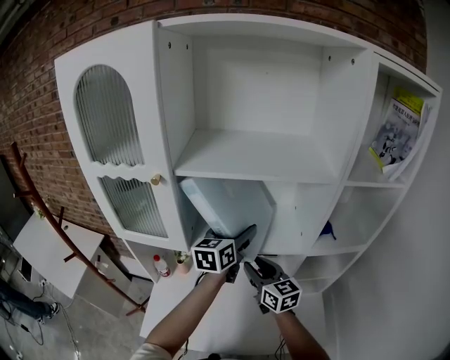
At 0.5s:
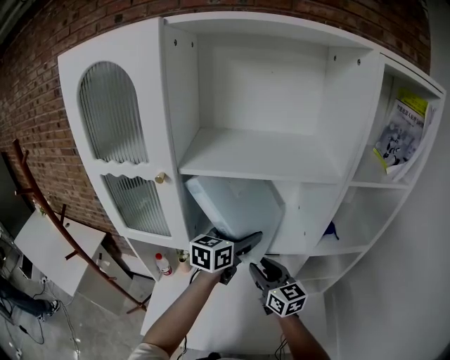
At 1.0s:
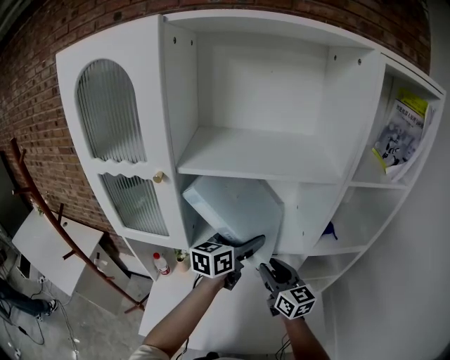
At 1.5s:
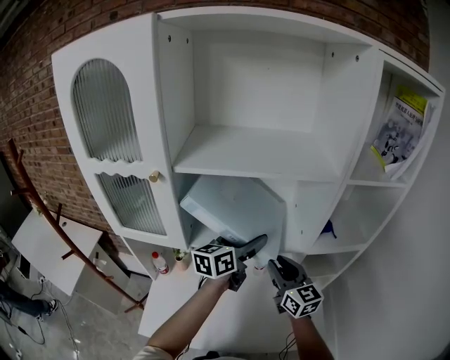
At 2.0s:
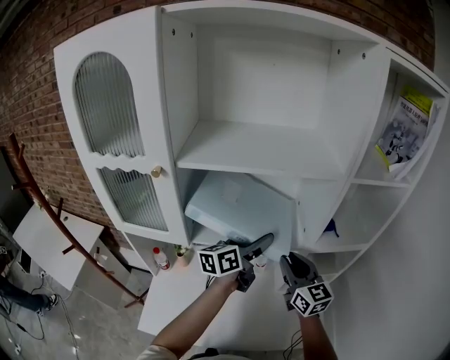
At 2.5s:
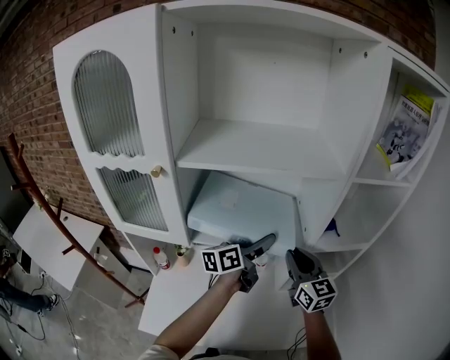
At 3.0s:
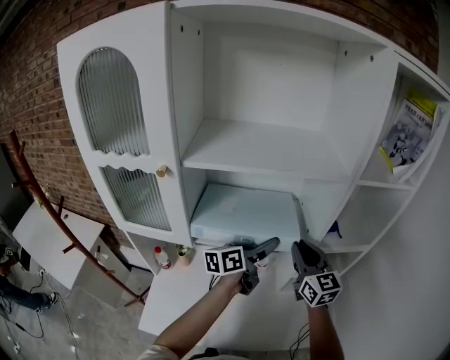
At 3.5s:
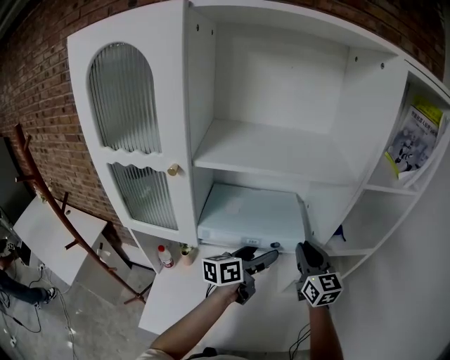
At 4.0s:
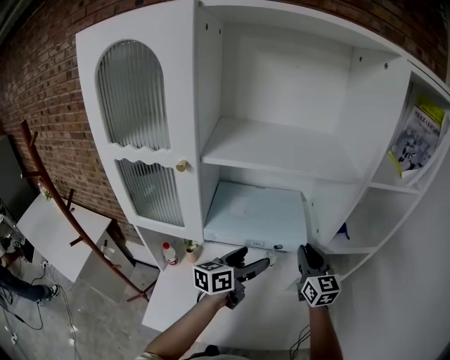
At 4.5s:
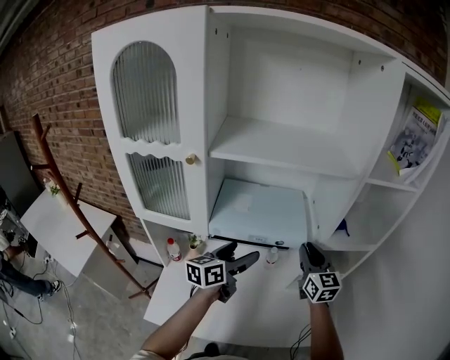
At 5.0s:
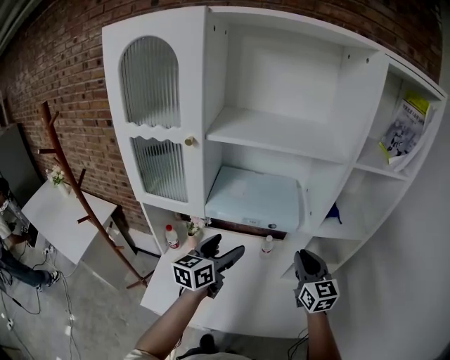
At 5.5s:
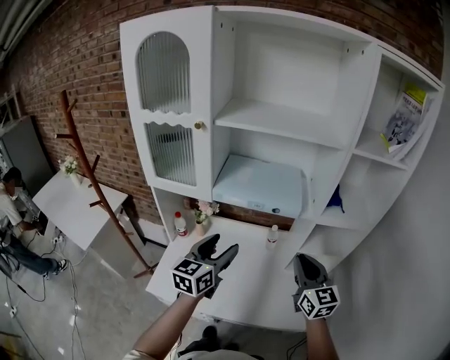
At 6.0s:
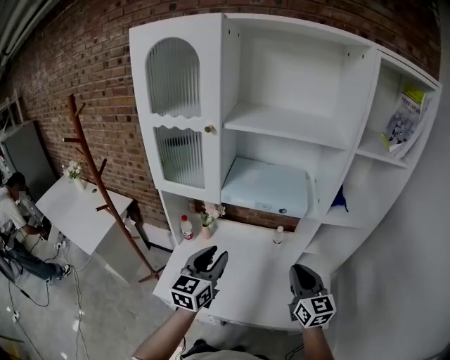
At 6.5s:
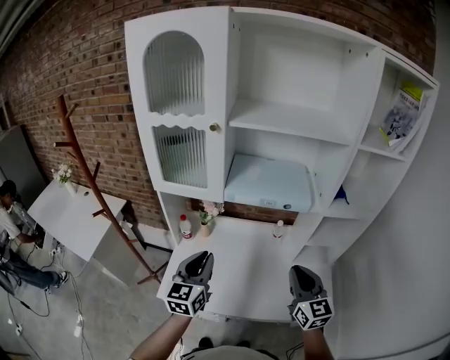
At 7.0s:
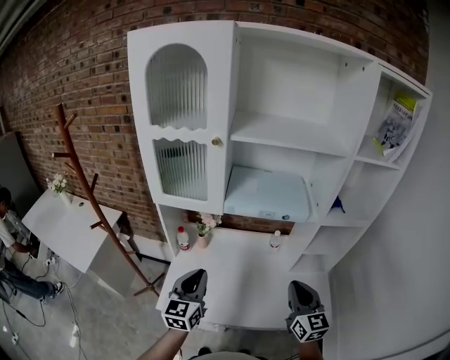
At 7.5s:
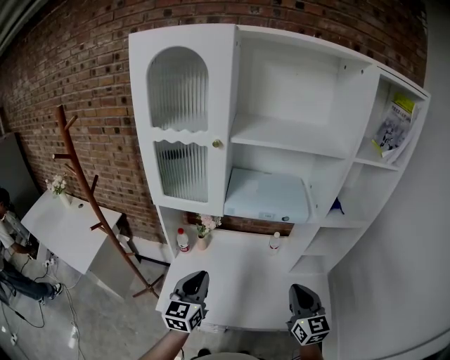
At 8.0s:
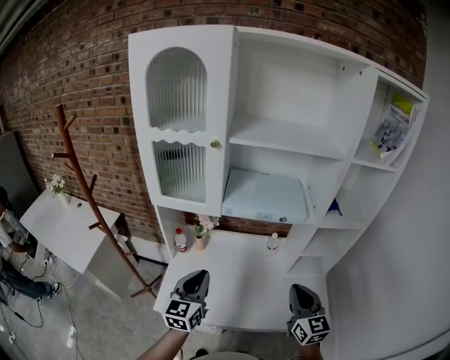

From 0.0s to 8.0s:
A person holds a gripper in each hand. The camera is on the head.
From 0.0s to 2.0s: The left gripper shifts about 5 cm to the right, and changes its angle by roughly 30 degrees; the right gripper moves to the right, some 10 cm.
From 2.0s to 4.0s: The left gripper is displaced backward by about 5 cm.
From 4.0s to 6.0s: The right gripper heads backward, covering about 20 cm. The left gripper goes about 20 cm backward and to the left, turns by approximately 40 degrees, and closes.
From 6.0s to 8.0s: The left gripper travels to the left by about 5 cm; the right gripper ends up approximately 5 cm from where it was.

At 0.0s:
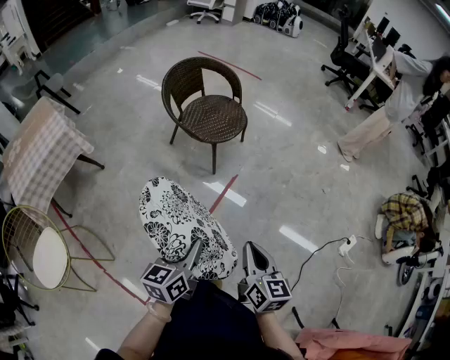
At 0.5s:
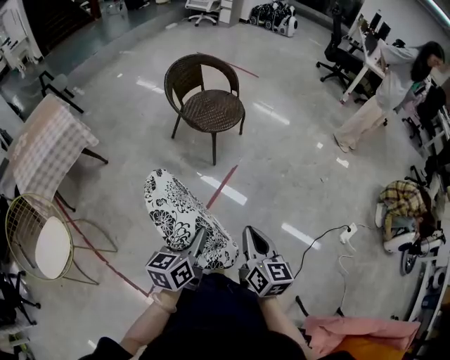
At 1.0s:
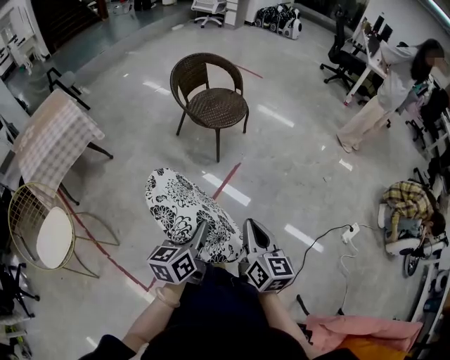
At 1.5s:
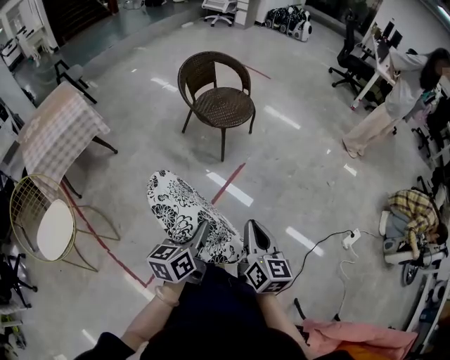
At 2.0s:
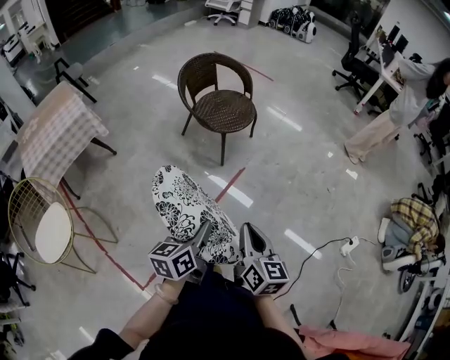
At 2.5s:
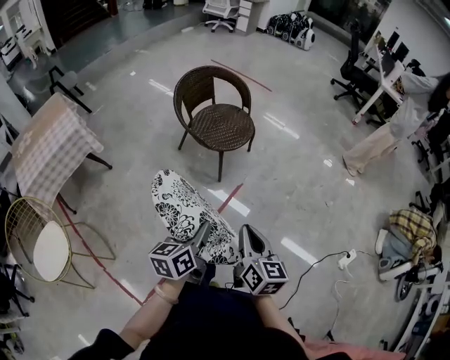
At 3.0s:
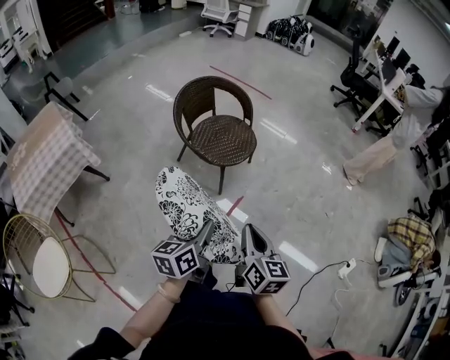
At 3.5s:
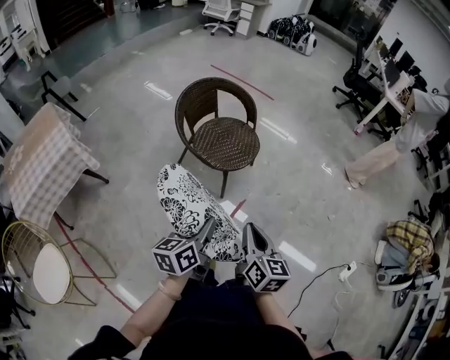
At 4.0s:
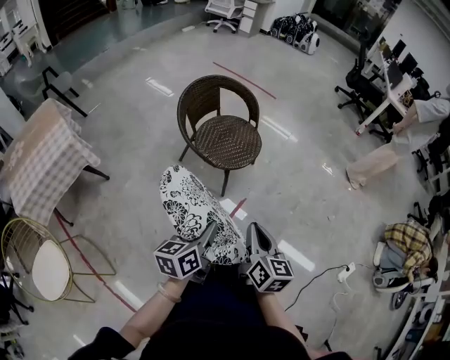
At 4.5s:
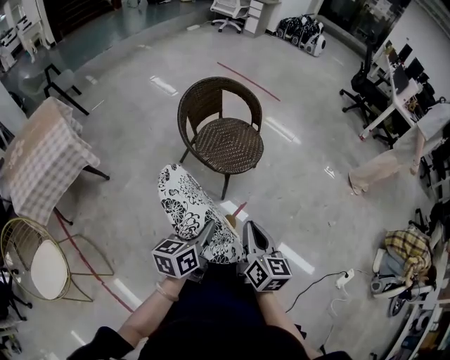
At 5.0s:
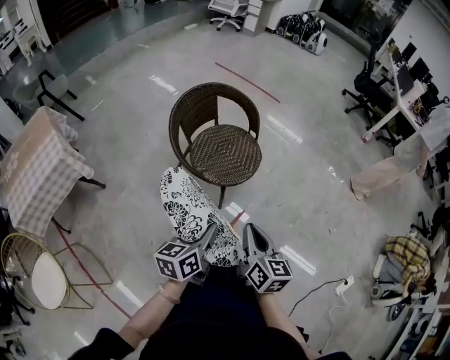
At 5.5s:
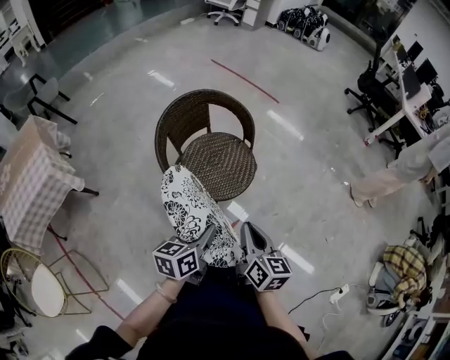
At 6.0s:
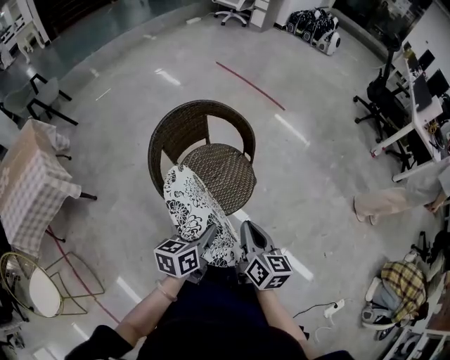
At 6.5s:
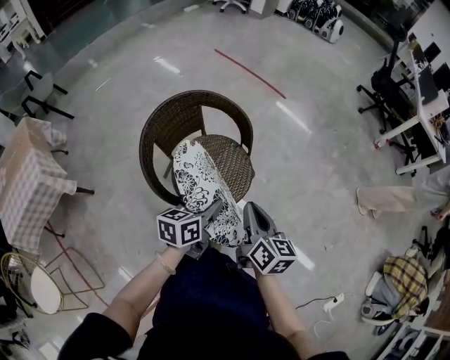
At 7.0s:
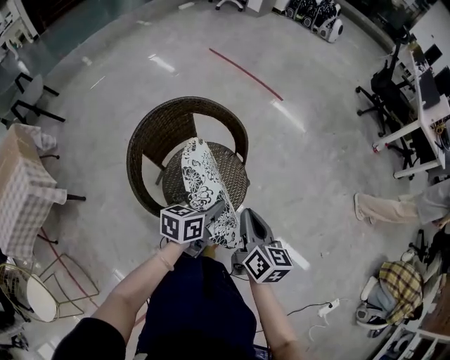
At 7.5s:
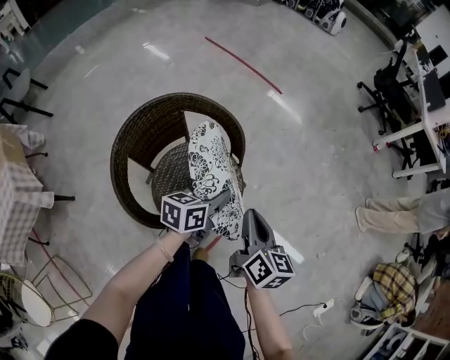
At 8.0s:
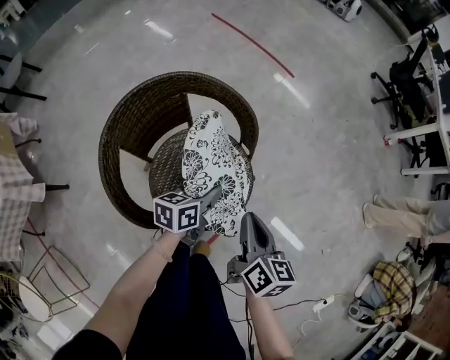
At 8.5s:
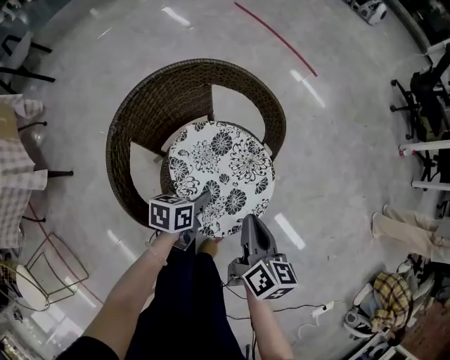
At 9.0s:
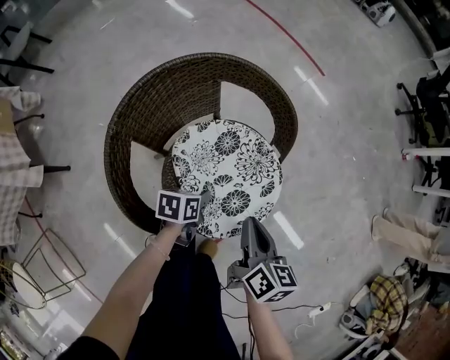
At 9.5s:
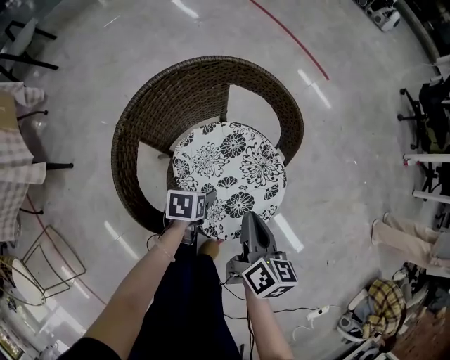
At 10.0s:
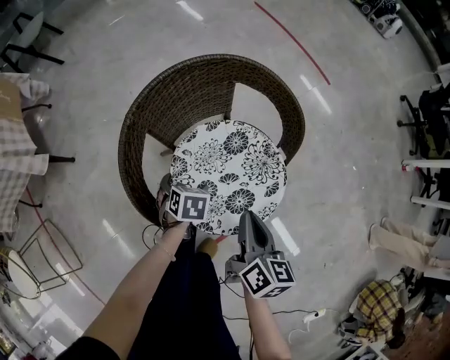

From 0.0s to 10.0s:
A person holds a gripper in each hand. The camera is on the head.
From 2.0s to 4.0s: Both grippers move forward, roughly 20 cm.
From 4.0s to 6.0s: The grippers both shift forward by some 30 cm.
From 6.0s to 8.0s: Both grippers move forward and downward, about 25 cm.
From 8.0s to 10.0s: The right gripper shifts by approximately 10 cm. The left gripper changes place by approximately 25 cm, tips its fingers downward by about 40 degrees, and opens its fingers.

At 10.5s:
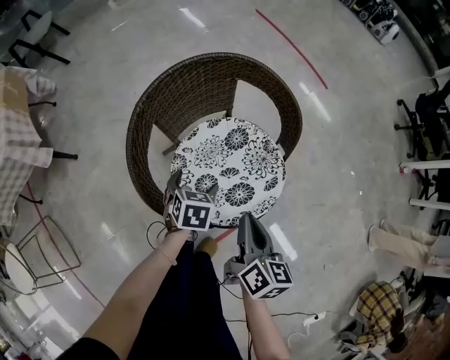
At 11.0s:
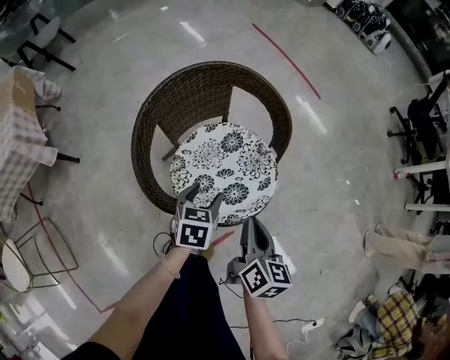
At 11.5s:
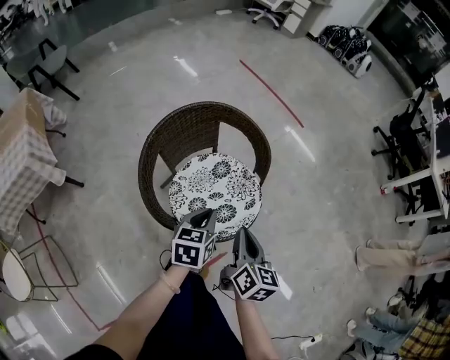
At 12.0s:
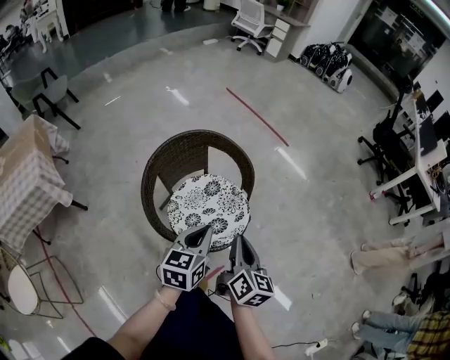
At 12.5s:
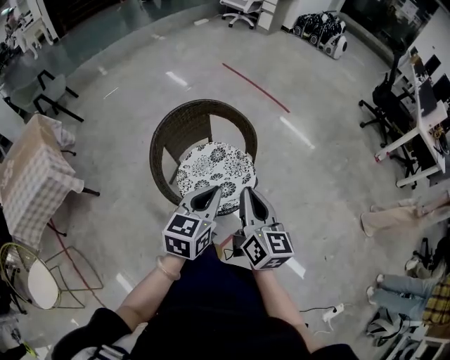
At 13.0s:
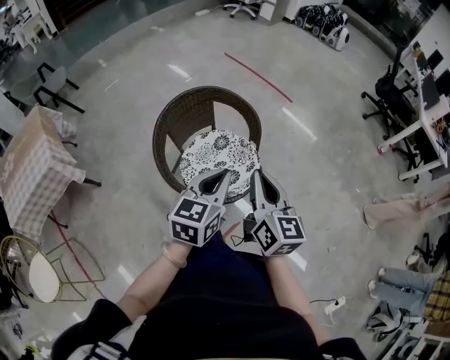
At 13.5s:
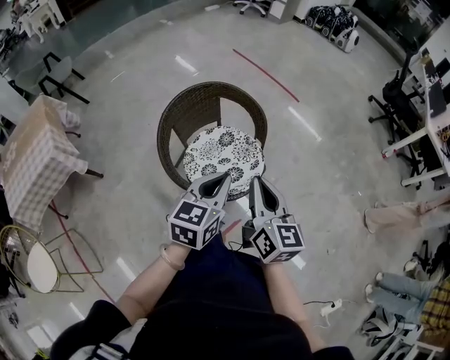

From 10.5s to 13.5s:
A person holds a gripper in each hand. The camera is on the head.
From 10.5s to 12.0s: The left gripper heads upward, covering some 30 cm, tilts its fingers roughly 30 degrees upward, and closes up. The right gripper goes about 15 cm upward.
From 12.0s to 13.5s: The two grippers go roughly 10 cm upward.

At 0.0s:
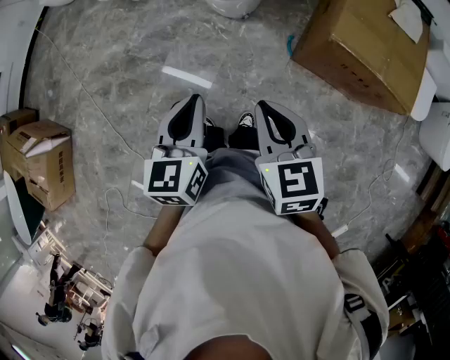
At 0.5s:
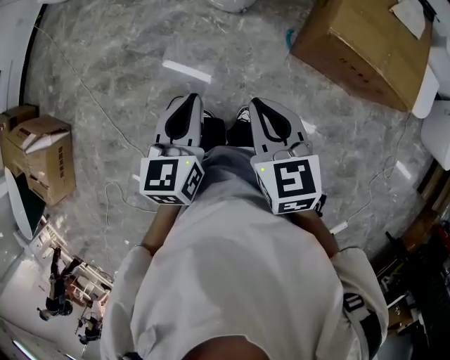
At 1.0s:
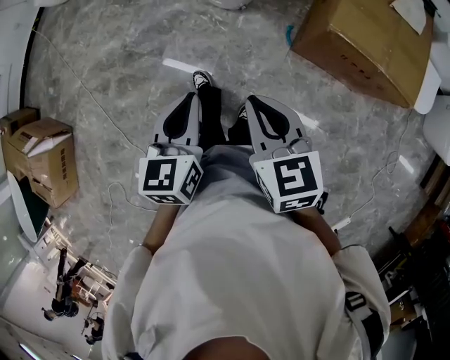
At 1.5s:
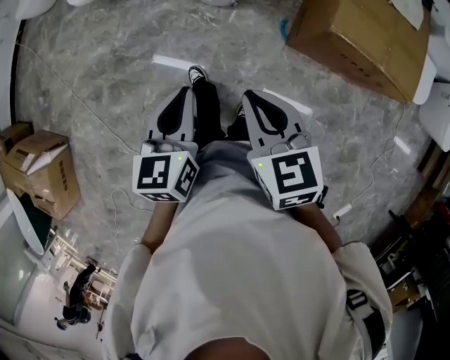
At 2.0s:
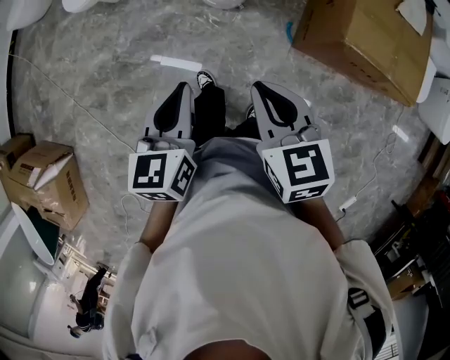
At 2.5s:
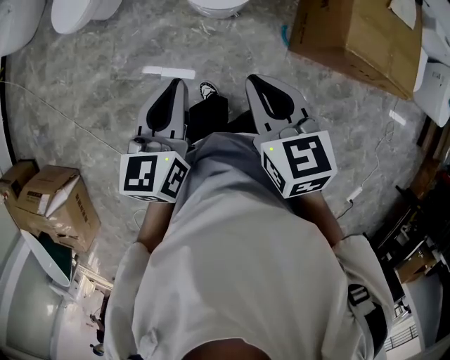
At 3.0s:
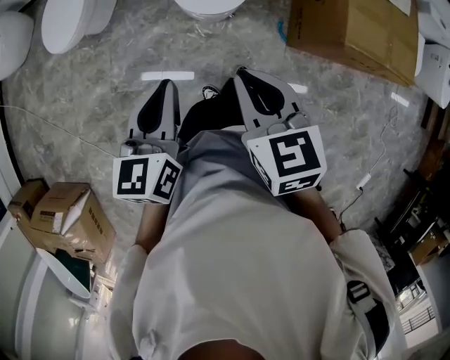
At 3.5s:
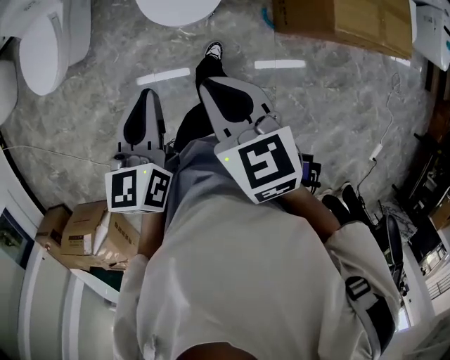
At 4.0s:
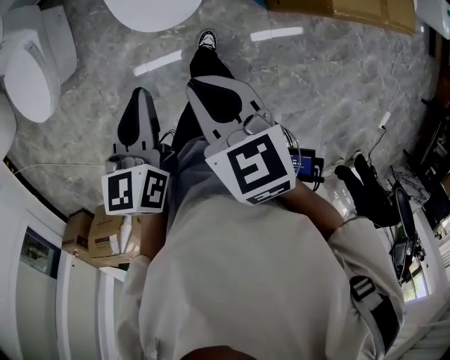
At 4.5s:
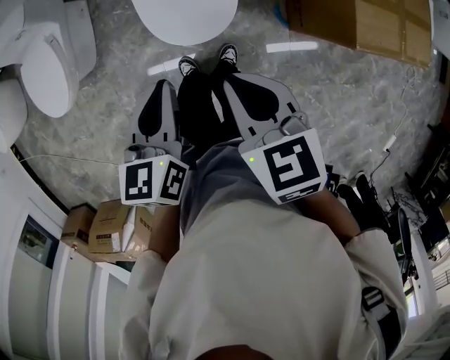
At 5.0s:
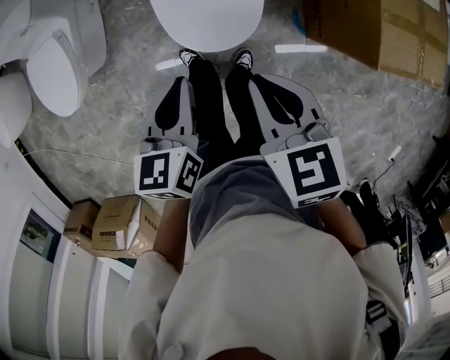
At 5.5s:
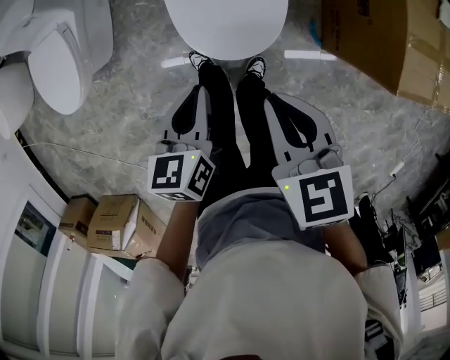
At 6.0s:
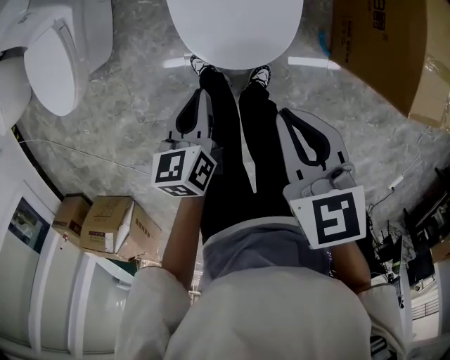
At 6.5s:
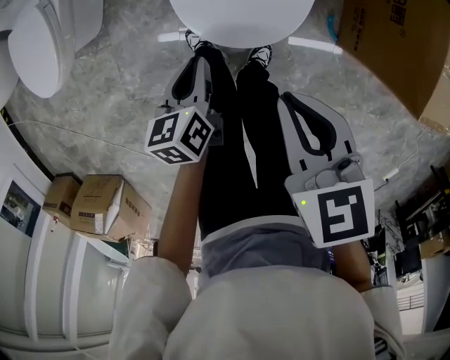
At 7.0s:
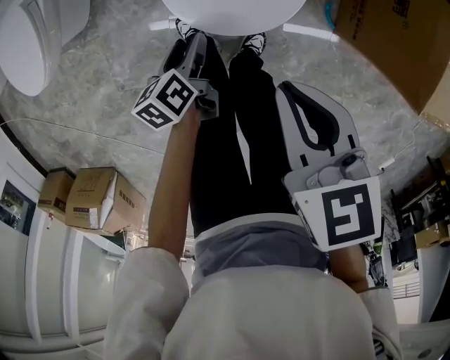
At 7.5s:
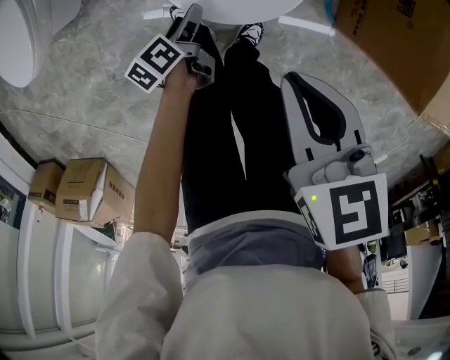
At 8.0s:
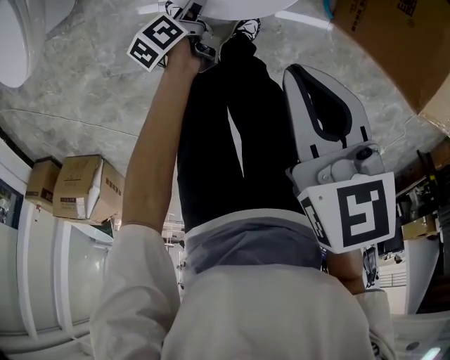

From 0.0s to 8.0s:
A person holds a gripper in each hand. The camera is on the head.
From 0.0s to 2.0s: The two grippers go roughly 20 cm forward and to the left.
From 2.0s to 4.0s: The two grippers go about 30 cm forward. The right gripper turns by approximately 20 degrees, while the left gripper changes its angle by about 20 degrees.
From 4.0s to 6.0s: Both grippers move downward and forward, roughly 20 cm.
From 6.0s to 8.0s: The left gripper goes approximately 25 cm downward, twists about 40 degrees counterclockwise, seen from behind, and opens; the right gripper travels downward by approximately 5 cm.
